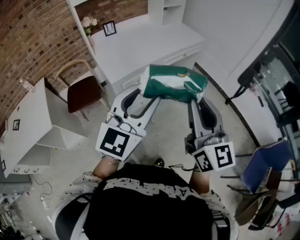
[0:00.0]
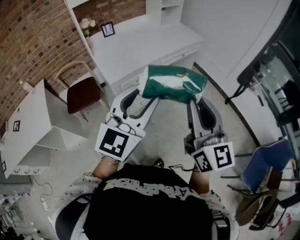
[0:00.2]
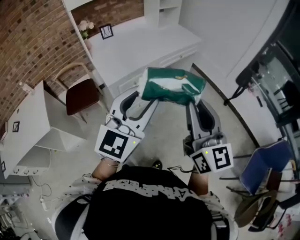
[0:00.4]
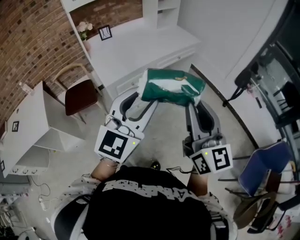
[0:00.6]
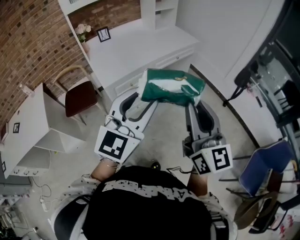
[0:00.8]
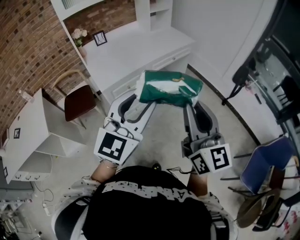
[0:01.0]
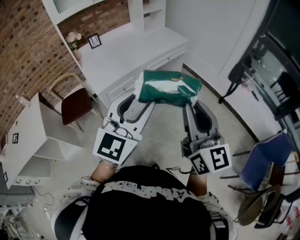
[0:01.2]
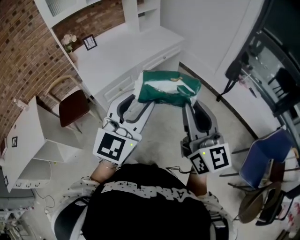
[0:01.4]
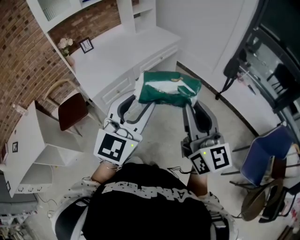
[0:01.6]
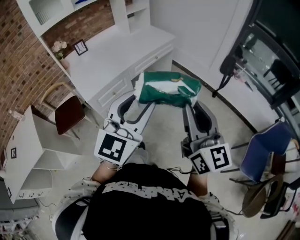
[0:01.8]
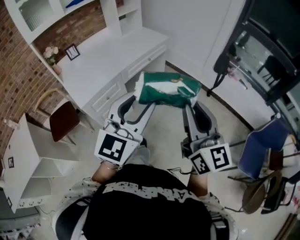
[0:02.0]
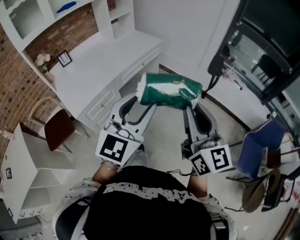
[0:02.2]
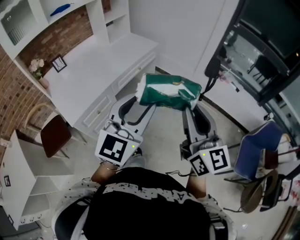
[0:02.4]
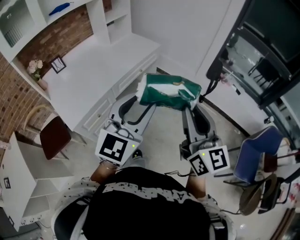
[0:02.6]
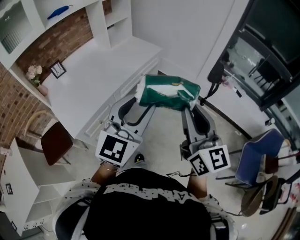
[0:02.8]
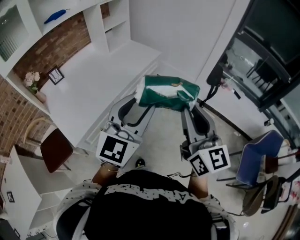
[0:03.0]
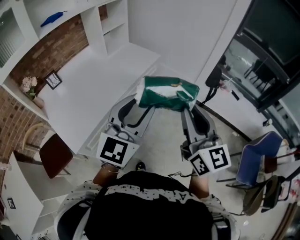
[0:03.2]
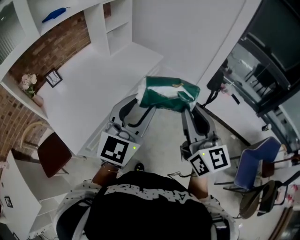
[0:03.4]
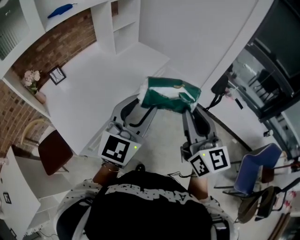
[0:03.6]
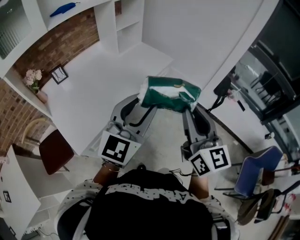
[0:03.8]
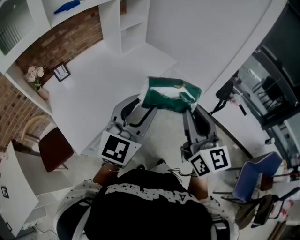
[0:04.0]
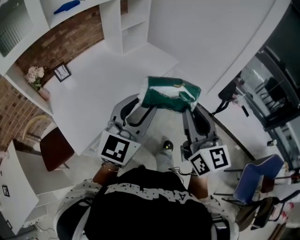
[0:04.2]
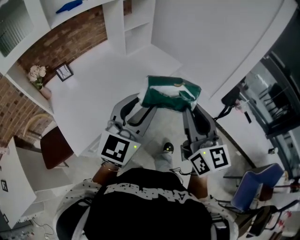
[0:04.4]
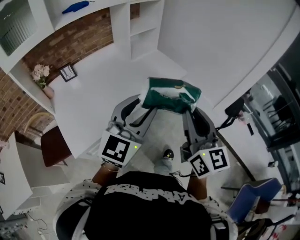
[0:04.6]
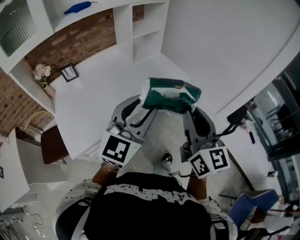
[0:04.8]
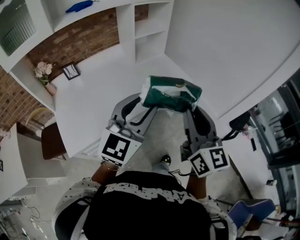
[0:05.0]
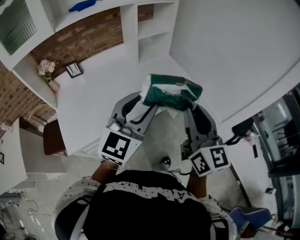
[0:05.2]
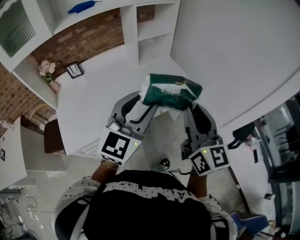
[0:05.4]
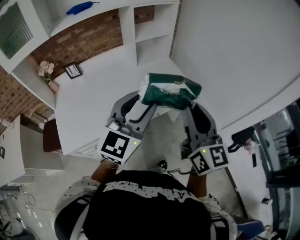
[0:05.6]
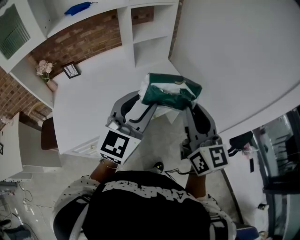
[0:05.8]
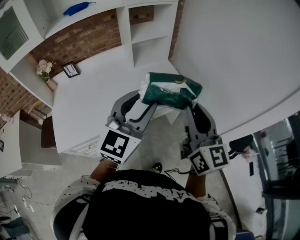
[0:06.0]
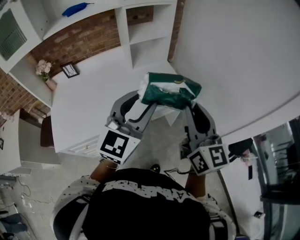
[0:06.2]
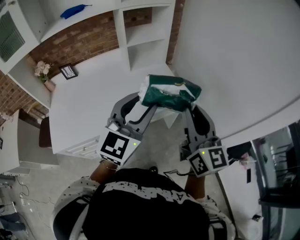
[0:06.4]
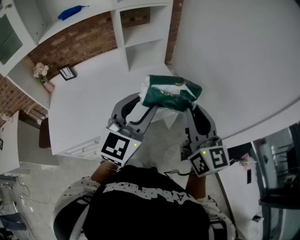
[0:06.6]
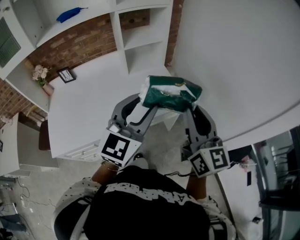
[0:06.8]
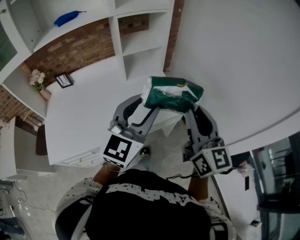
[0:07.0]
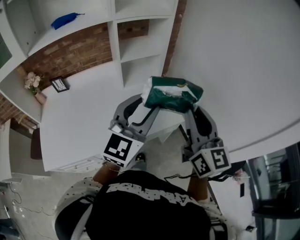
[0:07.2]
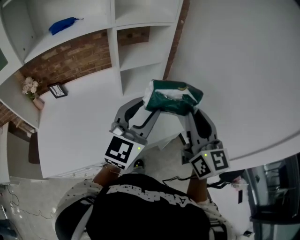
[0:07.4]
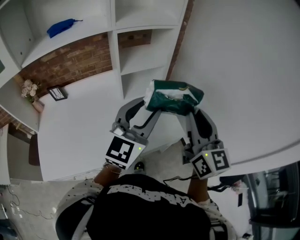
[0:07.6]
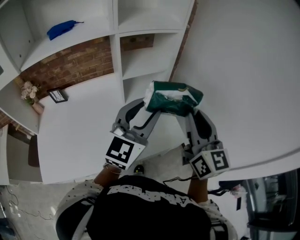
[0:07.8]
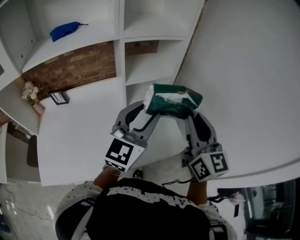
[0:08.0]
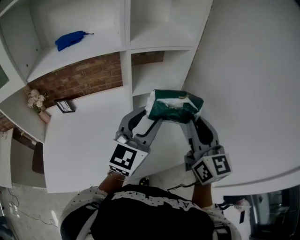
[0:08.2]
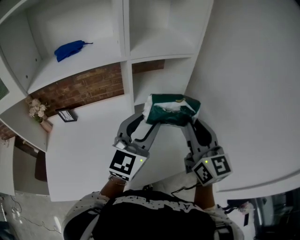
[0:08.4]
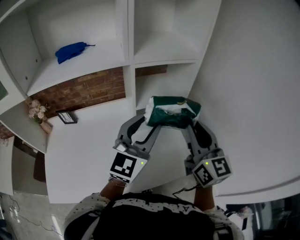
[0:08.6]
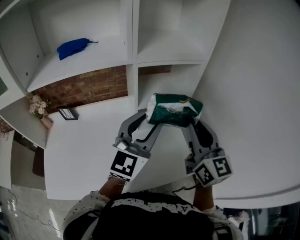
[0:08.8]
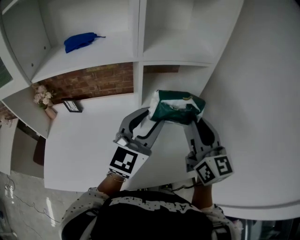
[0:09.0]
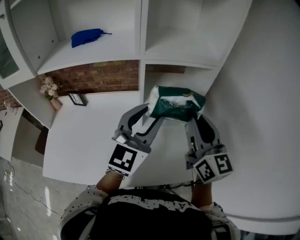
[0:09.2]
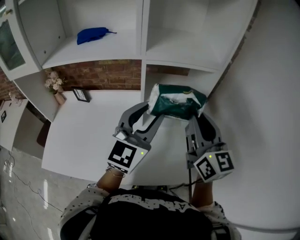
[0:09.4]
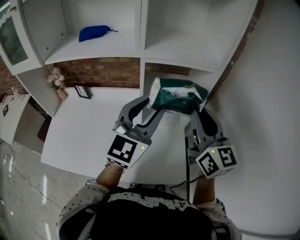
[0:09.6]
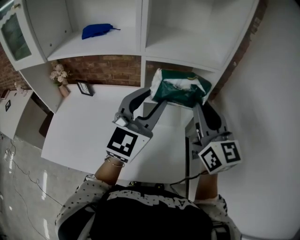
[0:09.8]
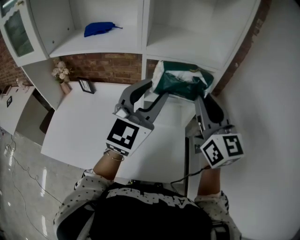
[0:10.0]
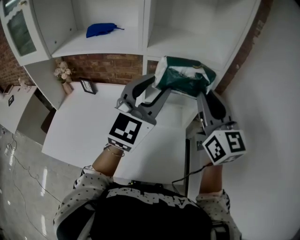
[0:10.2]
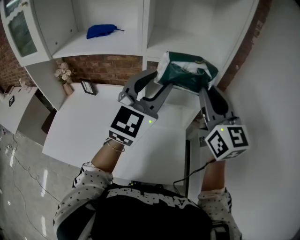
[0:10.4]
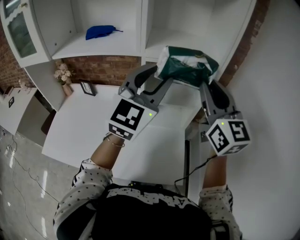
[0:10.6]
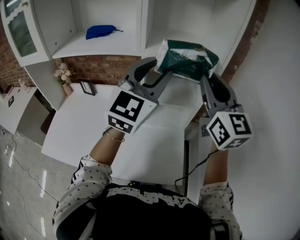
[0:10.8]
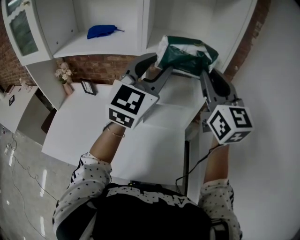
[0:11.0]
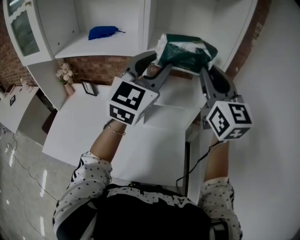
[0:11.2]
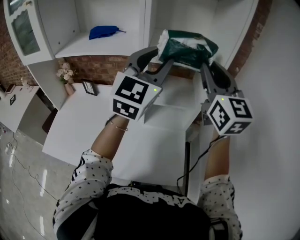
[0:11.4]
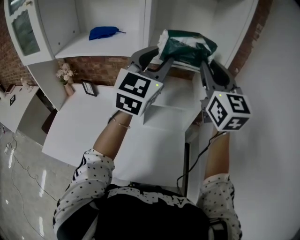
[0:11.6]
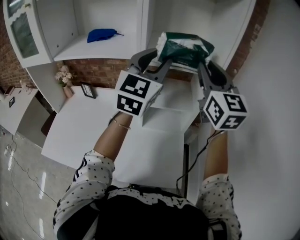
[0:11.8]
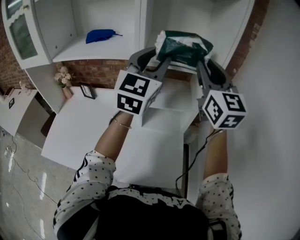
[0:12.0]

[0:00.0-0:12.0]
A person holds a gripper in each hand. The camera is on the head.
0:00.0 to 0:01.6: The two grippers go roughly 15 cm to the right.
0:01.6 to 0:03.0: Both grippers move forward, roughly 20 cm.
0:03.0 to 0:04.4: Both grippers travel together forward and to the left, approximately 15 cm.
0:04.4 to 0:06.0: The two grippers go about 25 cm forward and to the right. The left gripper rotates some 20 degrees.
0:06.0 to 0:07.6: Both grippers travel together forward, approximately 20 cm.
0:07.6 to 0:09.0: The two grippers go about 15 cm forward and to the left.
0:09.0 to 0:10.4: The left gripper is displaced upward by about 10 cm; the right gripper shifts roughly 10 cm upward and forward.
0:10.4 to 0:12.0: The left gripper heads forward, covering about 10 cm; the right gripper is displaced forward and upward by approximately 10 cm.

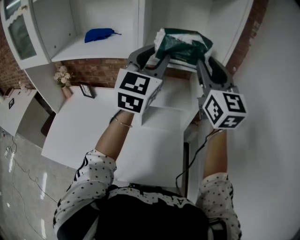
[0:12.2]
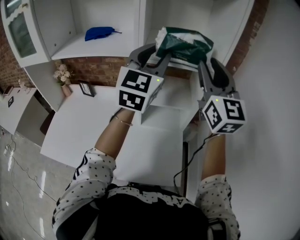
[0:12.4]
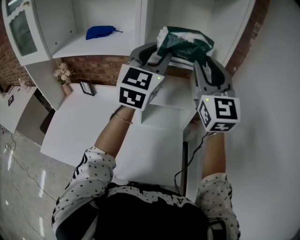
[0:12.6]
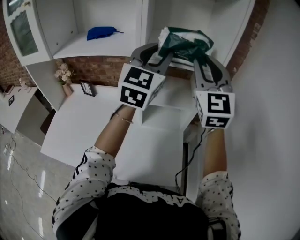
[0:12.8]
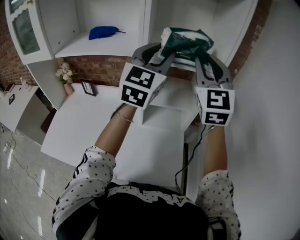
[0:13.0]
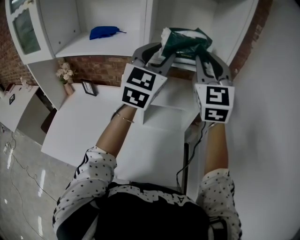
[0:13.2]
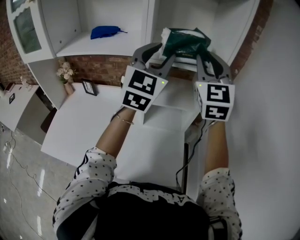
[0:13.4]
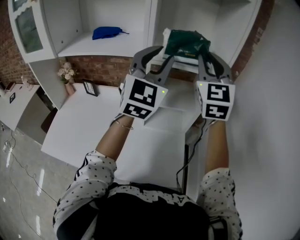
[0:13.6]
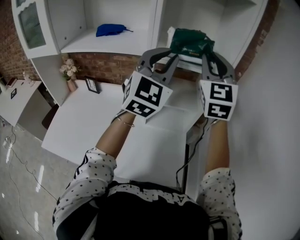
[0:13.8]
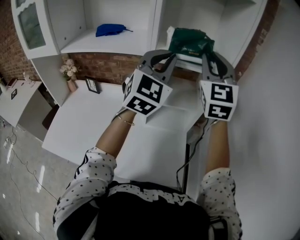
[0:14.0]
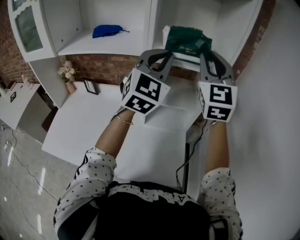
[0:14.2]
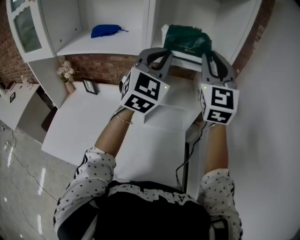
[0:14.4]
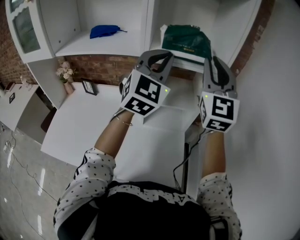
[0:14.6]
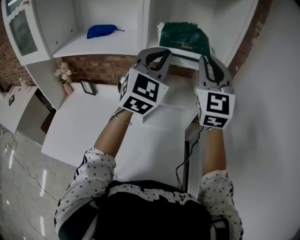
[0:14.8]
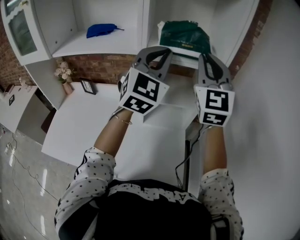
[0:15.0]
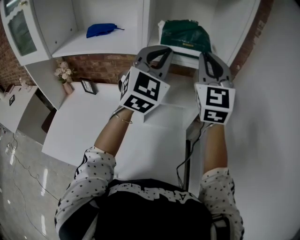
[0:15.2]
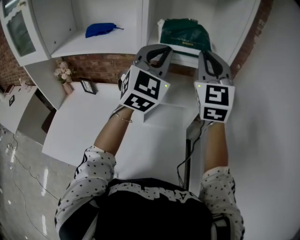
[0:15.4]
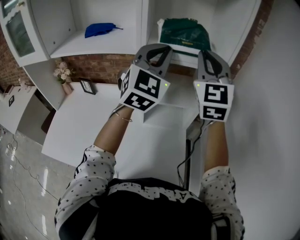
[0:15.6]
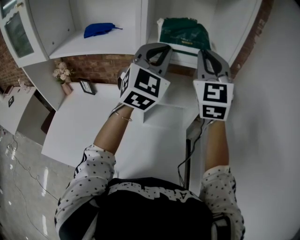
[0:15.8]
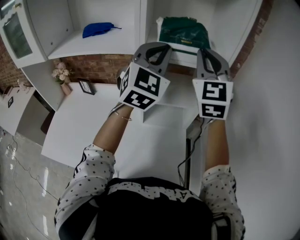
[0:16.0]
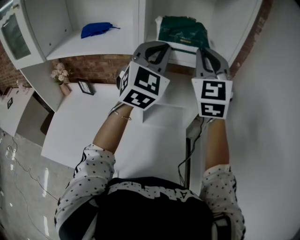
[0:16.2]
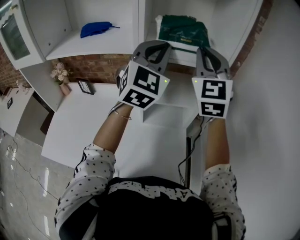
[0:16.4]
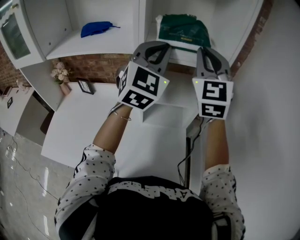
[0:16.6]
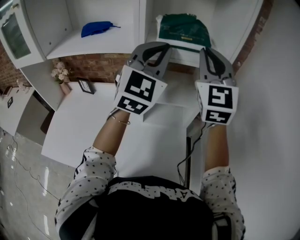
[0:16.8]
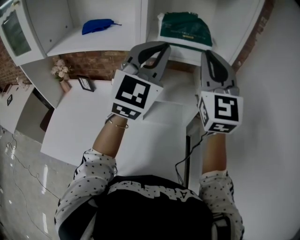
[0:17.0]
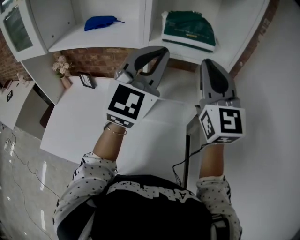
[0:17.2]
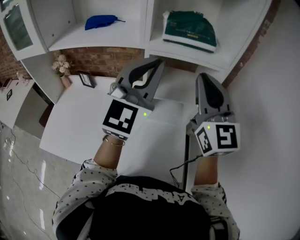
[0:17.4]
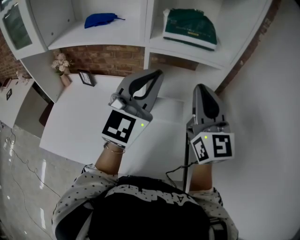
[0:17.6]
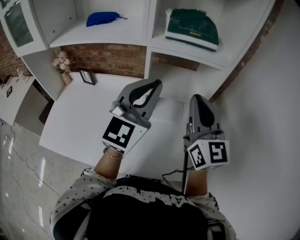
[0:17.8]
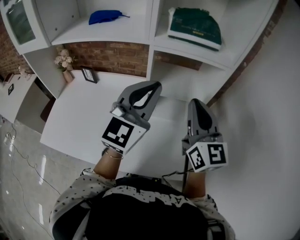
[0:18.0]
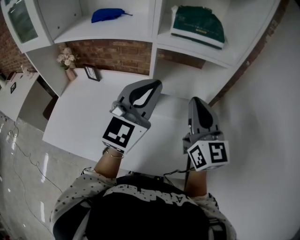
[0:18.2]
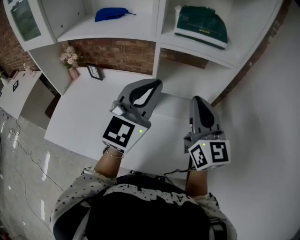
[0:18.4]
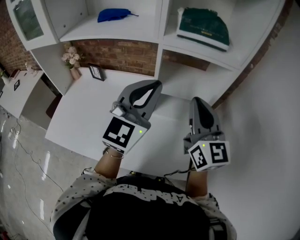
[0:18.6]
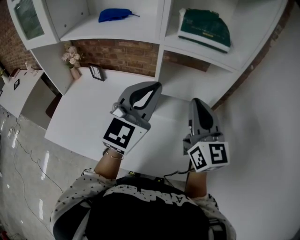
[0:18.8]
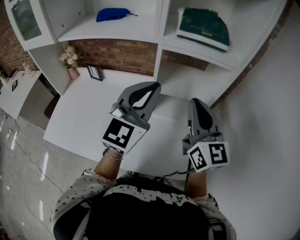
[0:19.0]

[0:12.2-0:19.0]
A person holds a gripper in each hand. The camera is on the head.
0:12.2 to 0:13.6: The right gripper rotates about 20 degrees.
0:13.6 to 0:15.0: The left gripper closes.
0:15.0 to 0:16.2: There are only small adjustments of the grippers.
0:16.2 to 0:17.6: The right gripper shifts approximately 15 cm backward and downward, and changes its angle by approximately 30 degrees; the left gripper shifts about 10 cm backward, and changes its angle by approximately 20 degrees.
0:17.6 to 0:19.0: The right gripper goes some 5 cm downward. Meanwhile the left gripper changes place by some 5 cm.

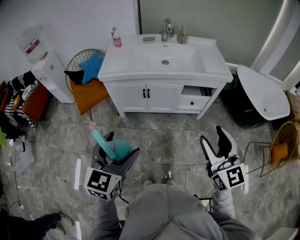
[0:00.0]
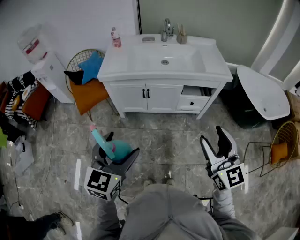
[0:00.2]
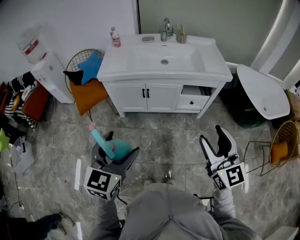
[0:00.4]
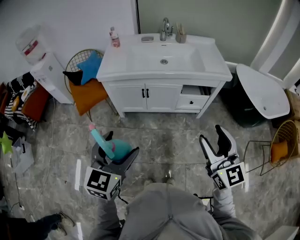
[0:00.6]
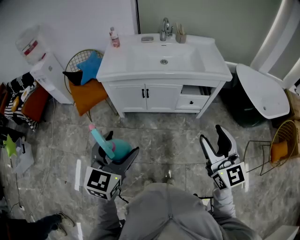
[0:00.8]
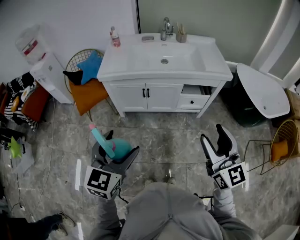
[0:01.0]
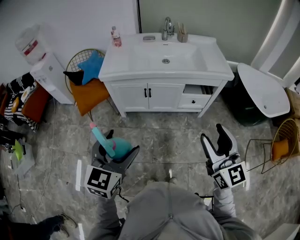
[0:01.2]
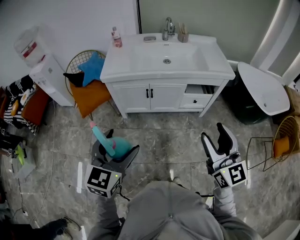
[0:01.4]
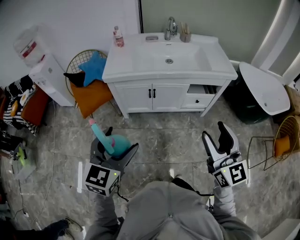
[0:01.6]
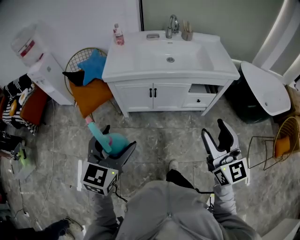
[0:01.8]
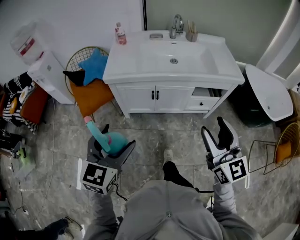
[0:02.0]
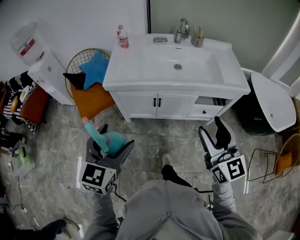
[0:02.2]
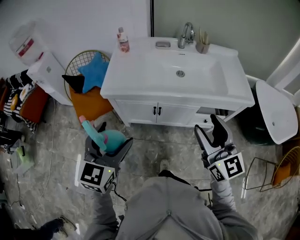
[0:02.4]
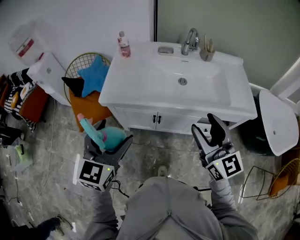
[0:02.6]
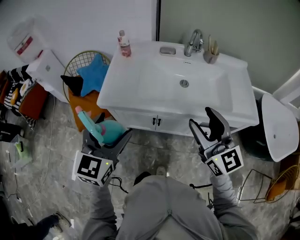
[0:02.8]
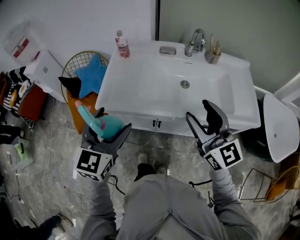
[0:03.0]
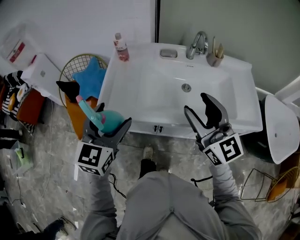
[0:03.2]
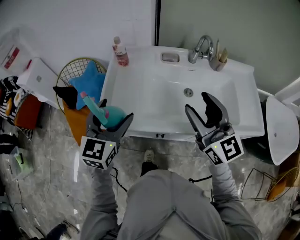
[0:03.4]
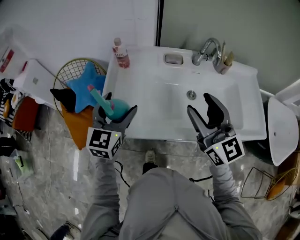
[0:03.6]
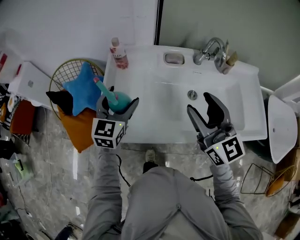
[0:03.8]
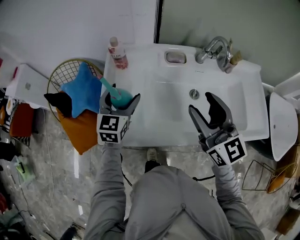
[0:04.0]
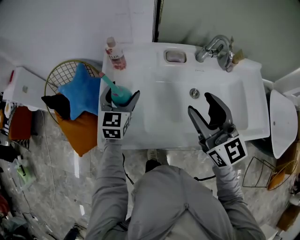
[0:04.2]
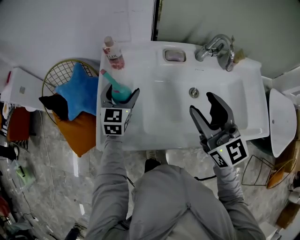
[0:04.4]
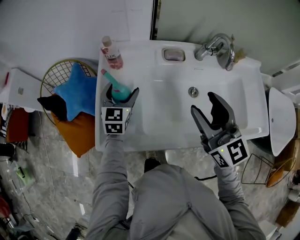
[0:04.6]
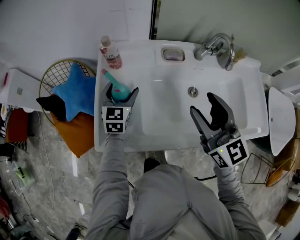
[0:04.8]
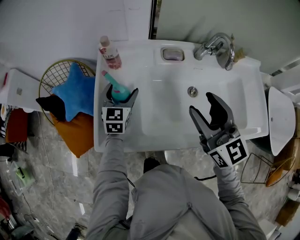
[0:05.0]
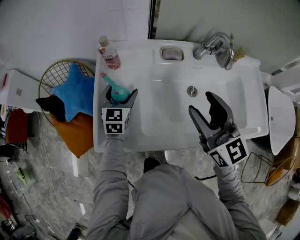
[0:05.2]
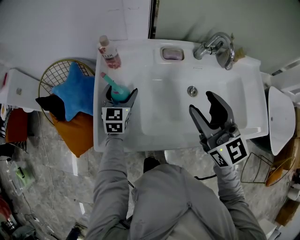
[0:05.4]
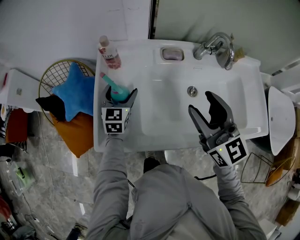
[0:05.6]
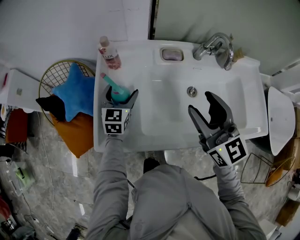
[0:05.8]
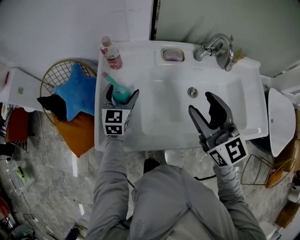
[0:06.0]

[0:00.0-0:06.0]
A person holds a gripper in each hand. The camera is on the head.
0:00.0 to 0:01.6: Both grippers travel together to the left, about 5 cm.
0:01.6 to 0:03.0: The grippers both shift forward by approximately 40 cm.
0:03.0 to 0:04.4: The right gripper travels forward by roughly 20 cm; the left gripper goes some 40 cm forward and downward.
0:04.4 to 0:06.0: There are only small adjustments of the grippers.
